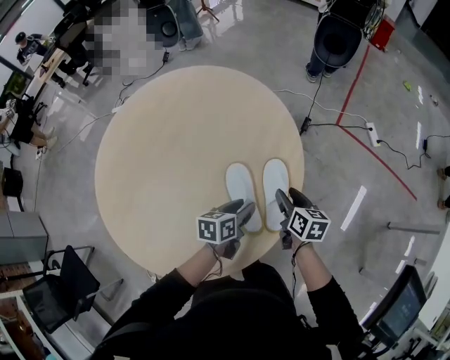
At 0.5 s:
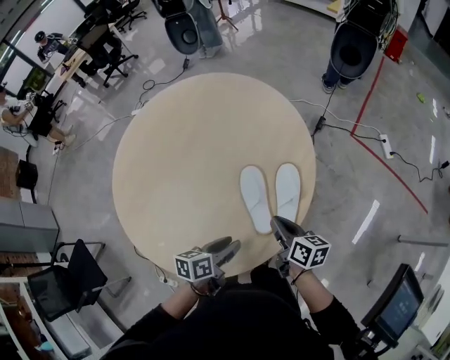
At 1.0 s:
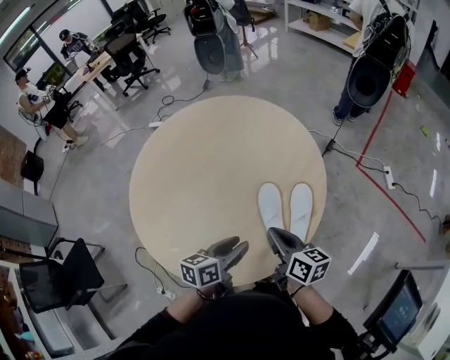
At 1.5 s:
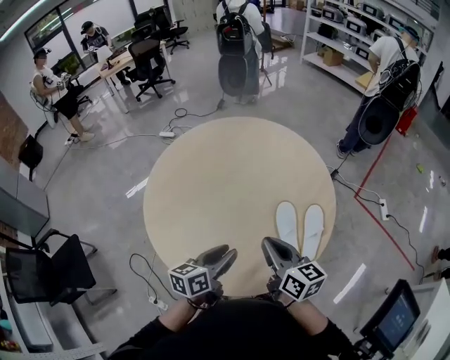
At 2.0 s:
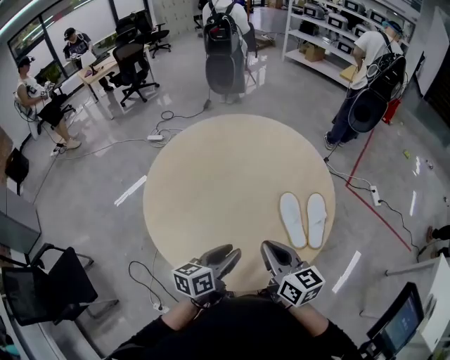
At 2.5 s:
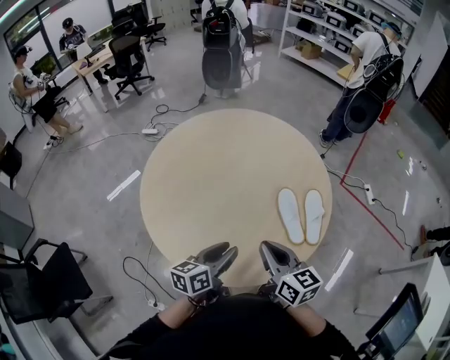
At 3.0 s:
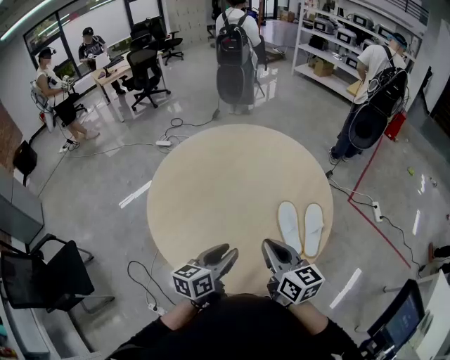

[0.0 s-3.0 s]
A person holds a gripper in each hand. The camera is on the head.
0.0 to 1.5 s: Both grippers travel together to the left, upward and backward, some 35 cm. The right gripper turns by approximately 40 degrees, and closes, while the left gripper turns by about 30 degrees.
1.5 to 3.0 s: The right gripper shifts approximately 10 cm backward and to the left, while the left gripper moves some 5 cm.

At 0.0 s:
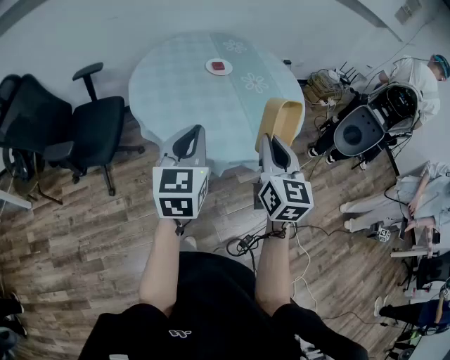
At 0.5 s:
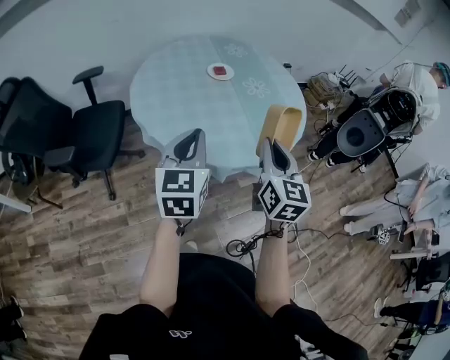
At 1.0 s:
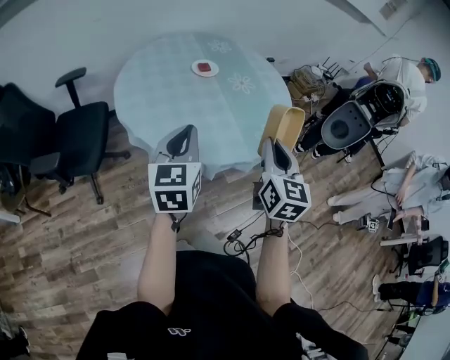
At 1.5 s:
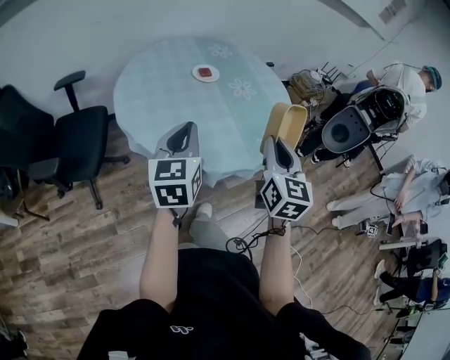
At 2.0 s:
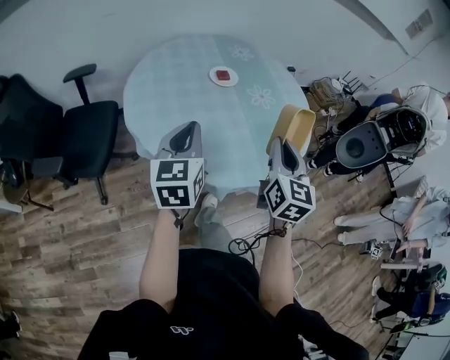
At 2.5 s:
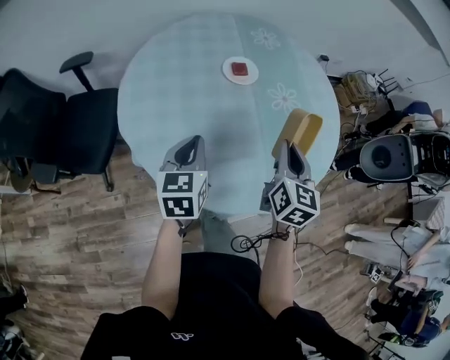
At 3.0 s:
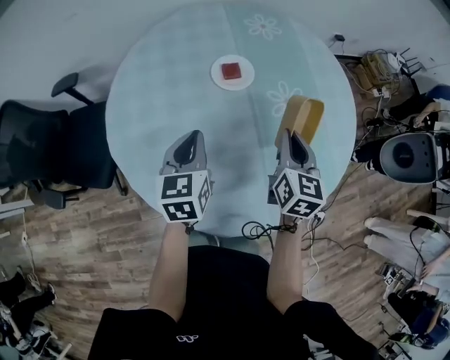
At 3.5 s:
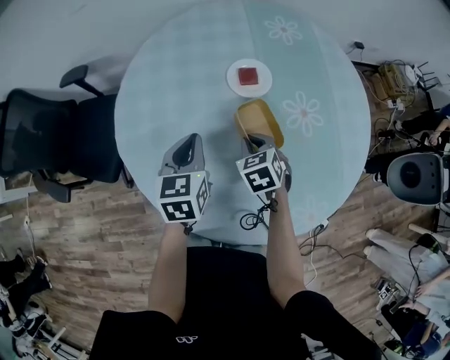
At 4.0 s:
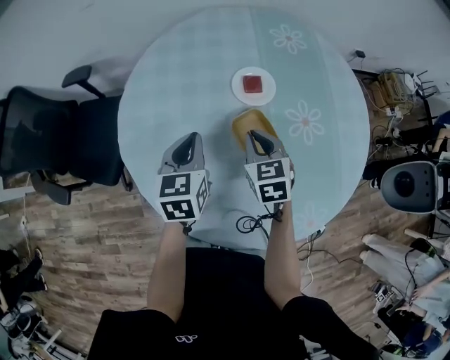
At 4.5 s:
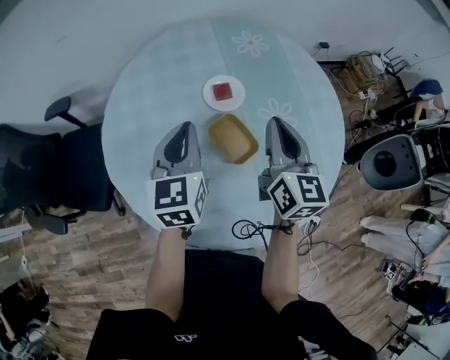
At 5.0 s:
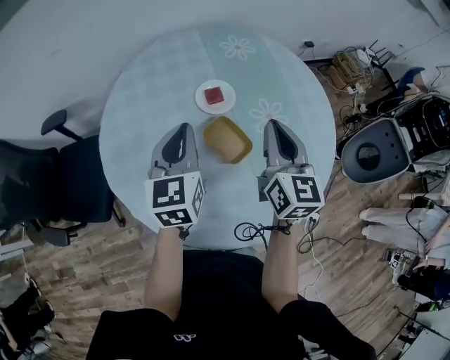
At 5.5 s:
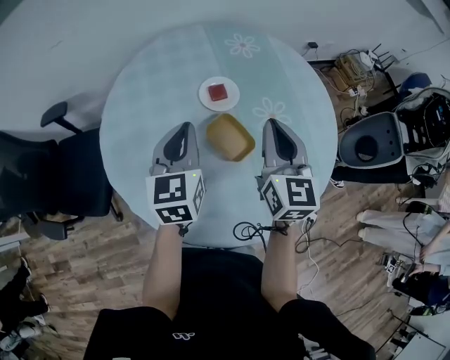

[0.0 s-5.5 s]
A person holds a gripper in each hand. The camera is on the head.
0.0 to 2.0 s: Both grippers move forward, roughly 15 cm.
2.0 to 3.5 s: Both grippers move forward and downward, about 40 cm. The left gripper swivels about 30 degrees, while the right gripper points its fingers roughly 50 degrees further downward.
3.5 to 5.5 s: The right gripper goes about 25 cm upward, and tilts its fingers approximately 50 degrees upward, while the left gripper goes about 10 cm upward.

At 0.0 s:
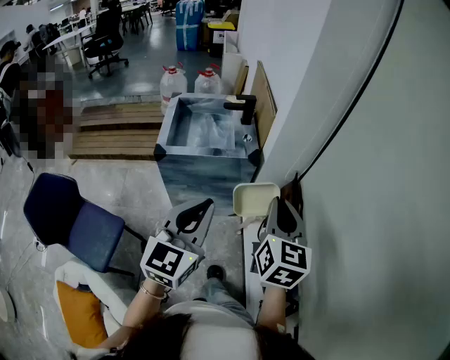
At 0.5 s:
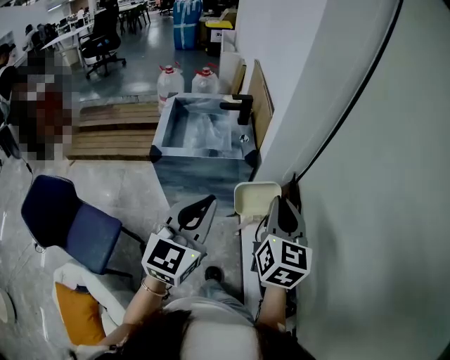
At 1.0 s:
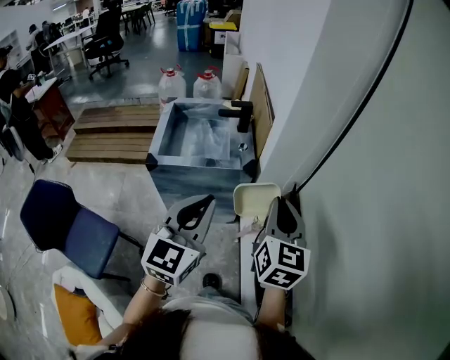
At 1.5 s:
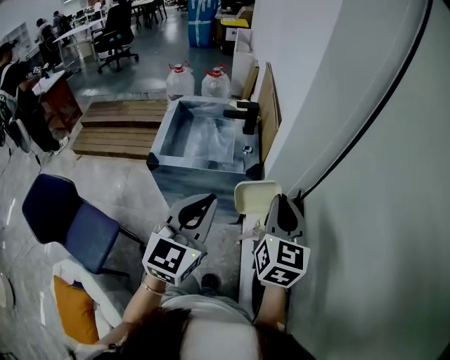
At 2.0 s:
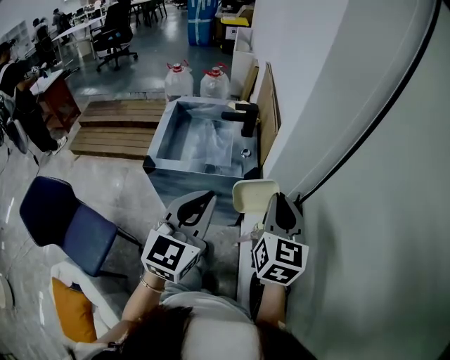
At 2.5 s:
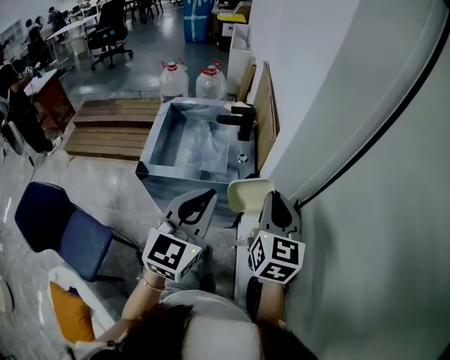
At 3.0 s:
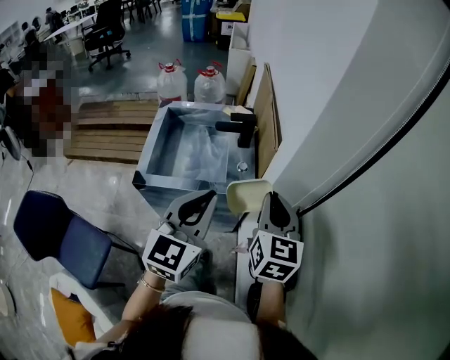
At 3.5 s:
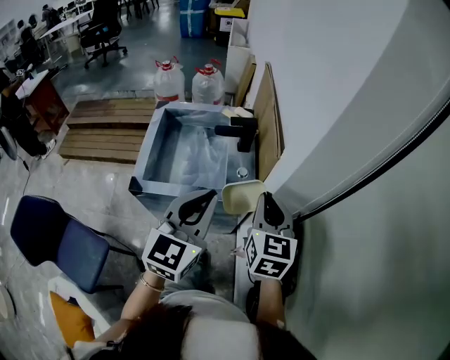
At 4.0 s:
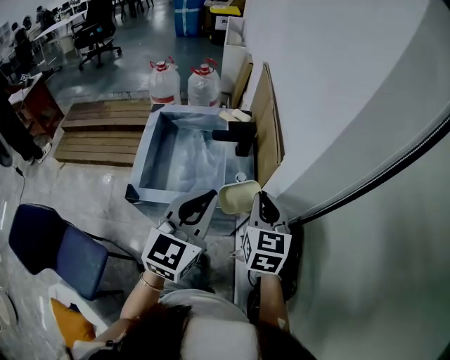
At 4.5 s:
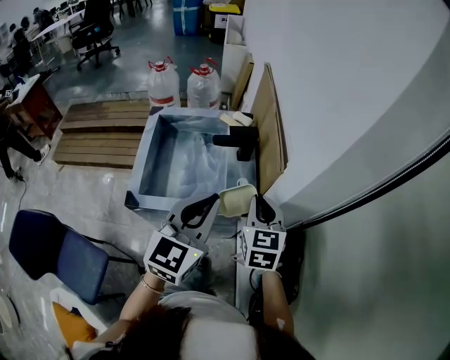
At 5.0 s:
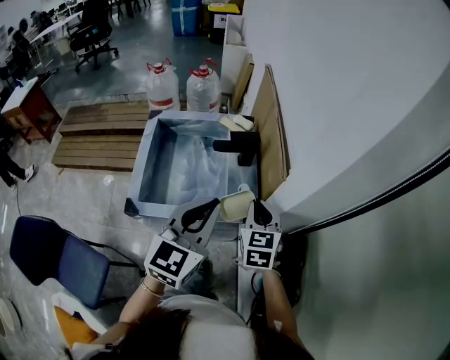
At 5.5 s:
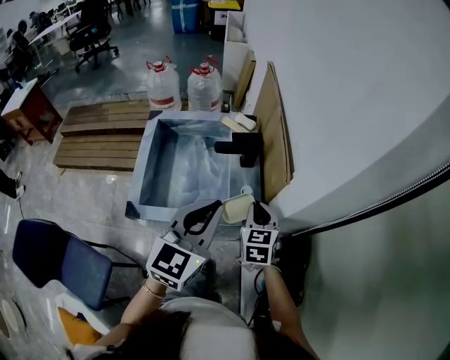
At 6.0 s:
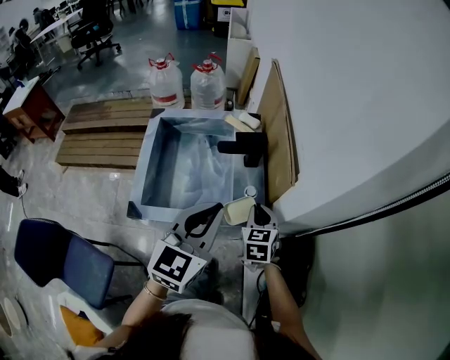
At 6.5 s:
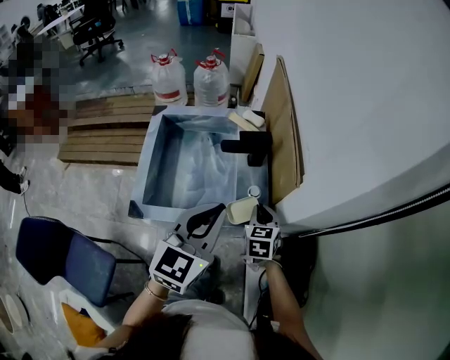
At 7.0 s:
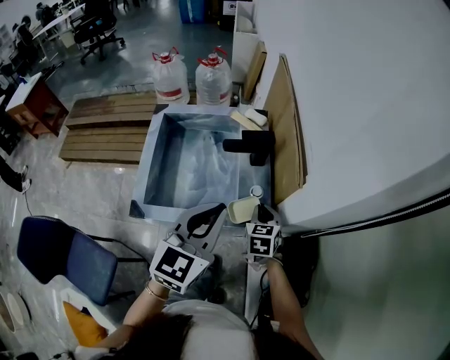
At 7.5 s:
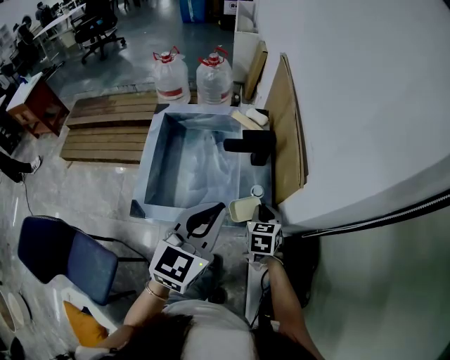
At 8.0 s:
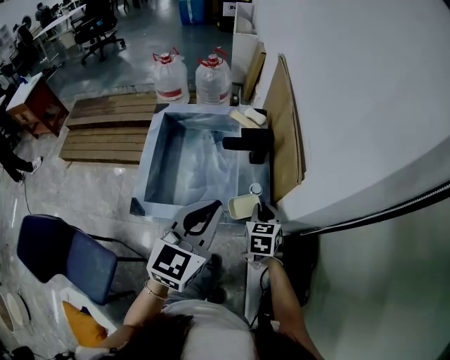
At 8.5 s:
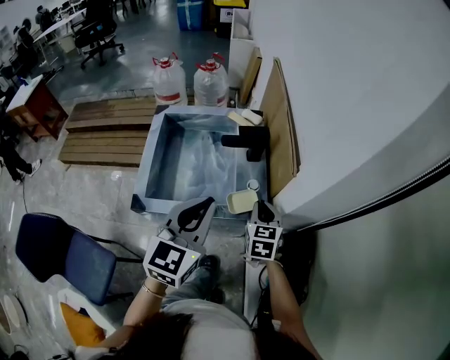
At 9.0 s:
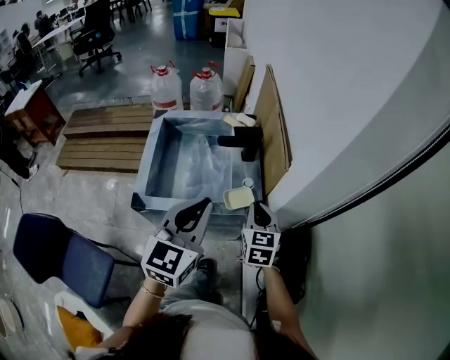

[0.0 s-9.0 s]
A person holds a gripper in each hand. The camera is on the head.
0.0 to 2.0 s: The two grippers go approximately 15 cm forward.
2.0 to 4.5 s: The left gripper heads forward, covering roughly 20 cm. The right gripper is displaced forward, downward and to the left by about 25 cm.
4.5 to 7.0 s: The right gripper moves downward, roughly 15 cm. The left gripper shifts by approximately 5 cm.
7.0 to 9.0 s: The right gripper goes some 10 cm upward and backward; the left gripper shifts approximately 5 cm backward.

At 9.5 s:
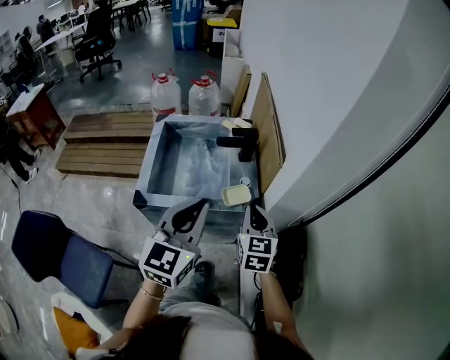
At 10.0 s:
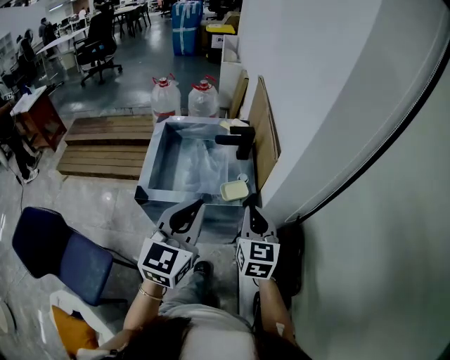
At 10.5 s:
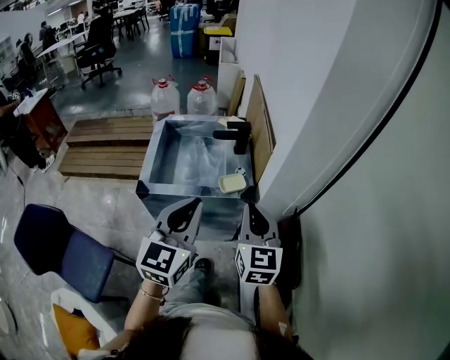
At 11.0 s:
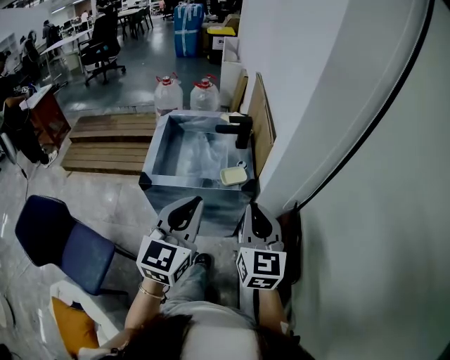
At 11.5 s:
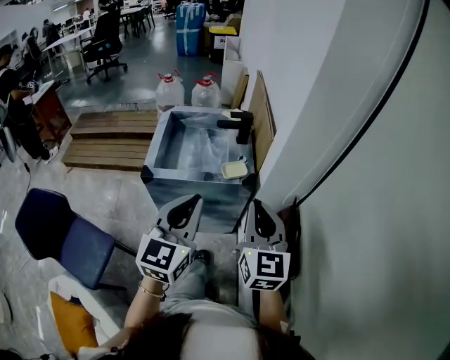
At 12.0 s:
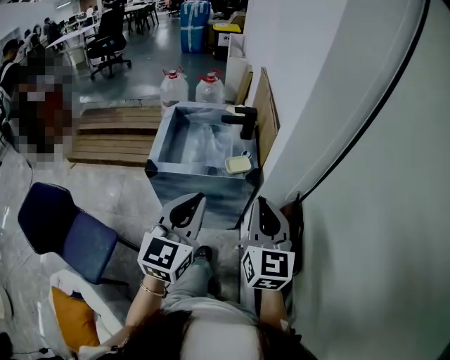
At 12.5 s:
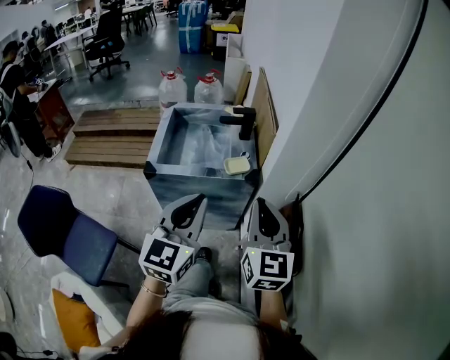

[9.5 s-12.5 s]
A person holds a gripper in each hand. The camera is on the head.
9.5 to 11.0 s: The right gripper heads backward and upward, covering approximately 20 cm. Meanwhile the left gripper moves backward, about 10 cm.
11.0 to 12.5 s: The grippers stay close to where they were, moving slightly.

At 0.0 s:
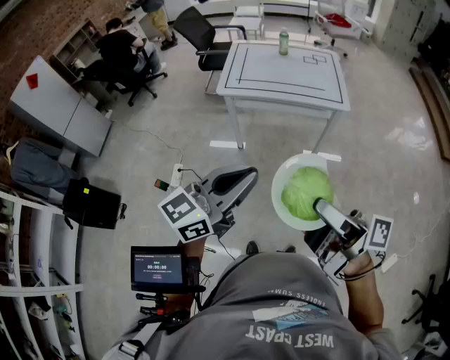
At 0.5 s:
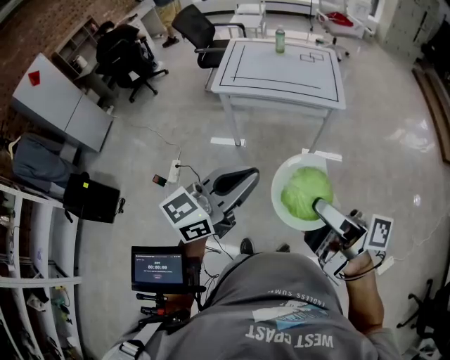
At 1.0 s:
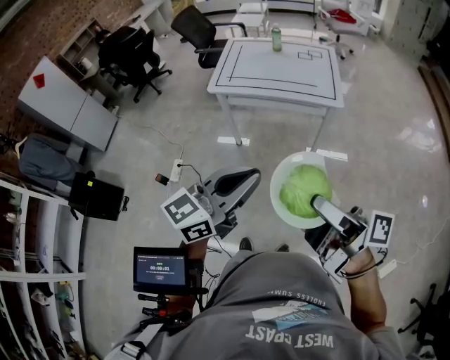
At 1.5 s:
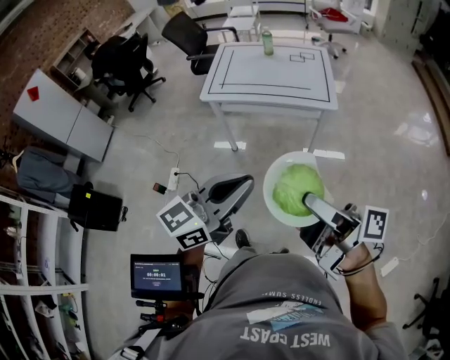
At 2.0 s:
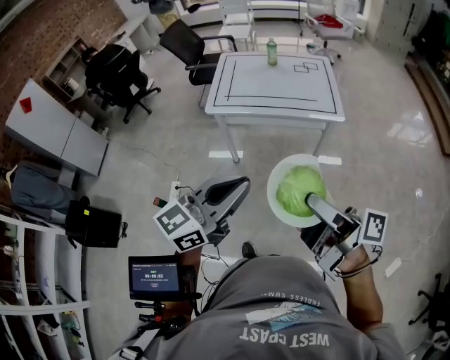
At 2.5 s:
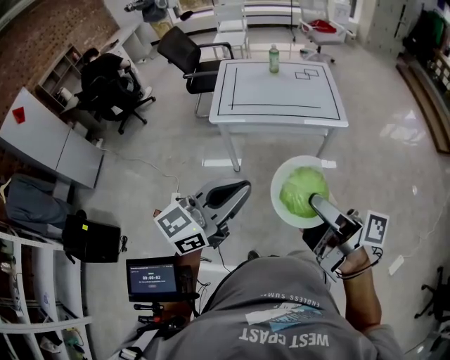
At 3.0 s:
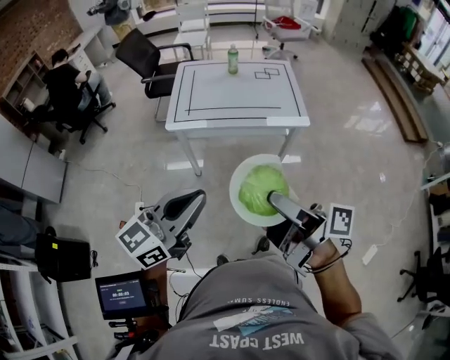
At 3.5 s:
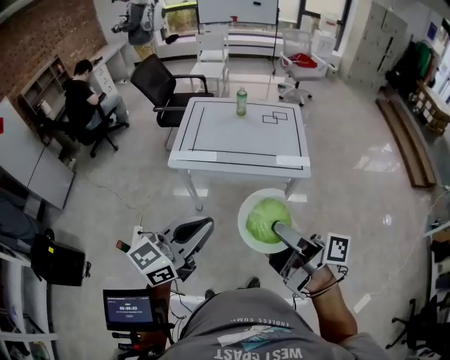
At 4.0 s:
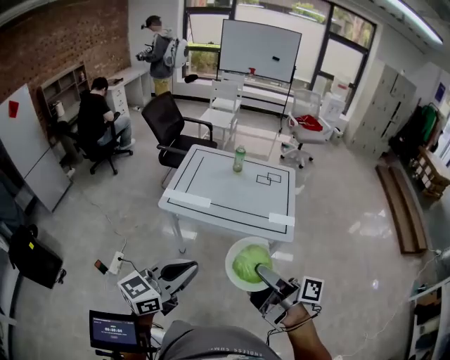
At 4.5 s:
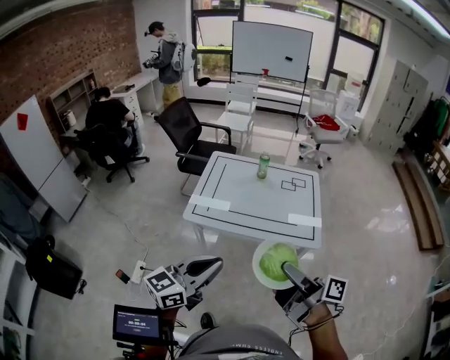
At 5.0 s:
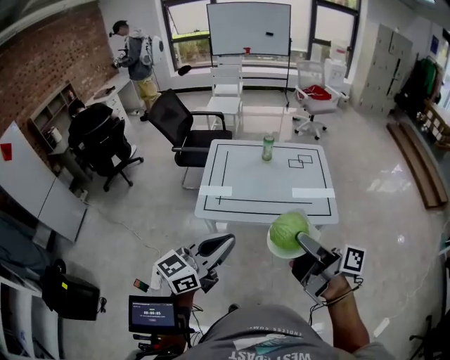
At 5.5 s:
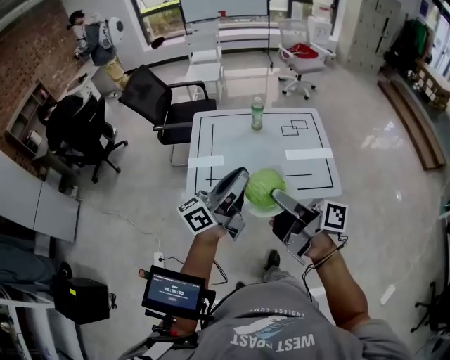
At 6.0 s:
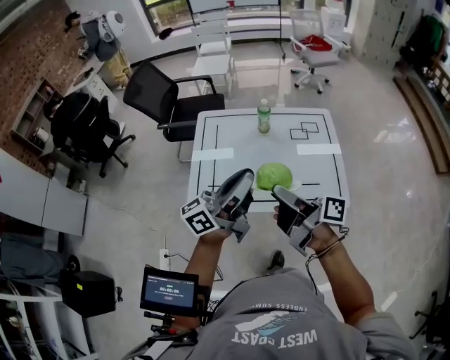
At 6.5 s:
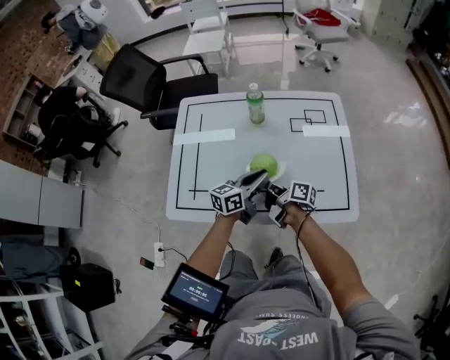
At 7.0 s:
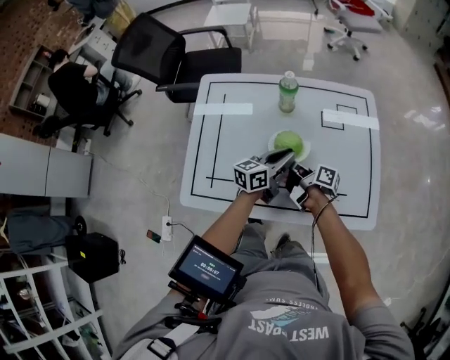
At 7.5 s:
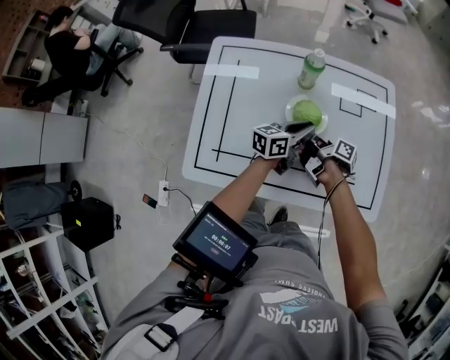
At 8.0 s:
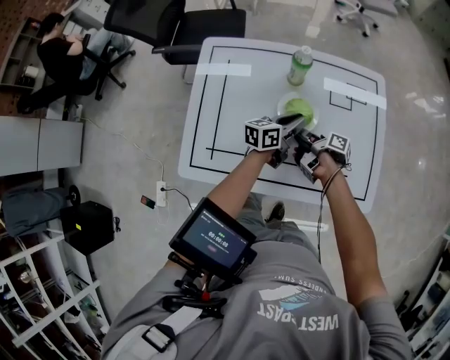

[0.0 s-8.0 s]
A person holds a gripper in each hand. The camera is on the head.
2.0 to 4.0 s: The left gripper shifts by roughly 15 cm.
4.0 to 6.0 s: The left gripper ends up approximately 35 cm from where it was, and changes its angle by some 40 degrees.
6.0 to 8.0 s: The left gripper goes approximately 35 cm downward, and tilts its fingers about 40 degrees downward.
